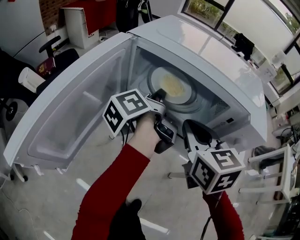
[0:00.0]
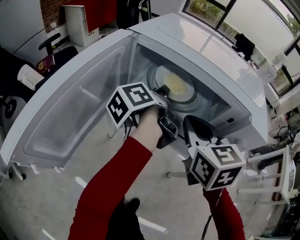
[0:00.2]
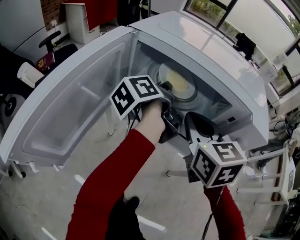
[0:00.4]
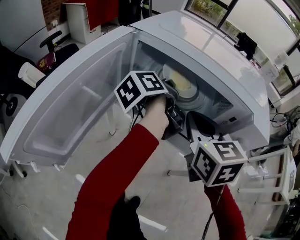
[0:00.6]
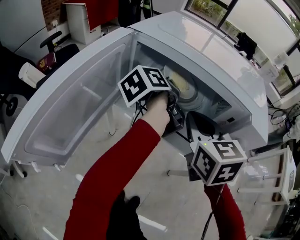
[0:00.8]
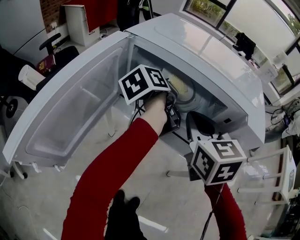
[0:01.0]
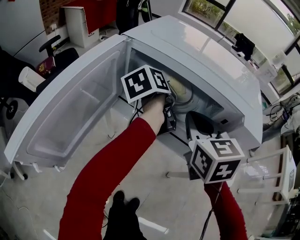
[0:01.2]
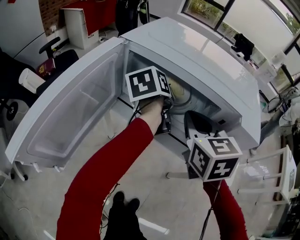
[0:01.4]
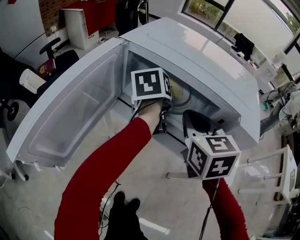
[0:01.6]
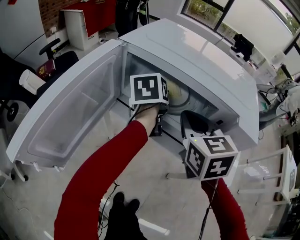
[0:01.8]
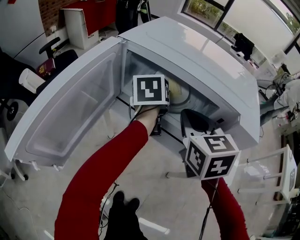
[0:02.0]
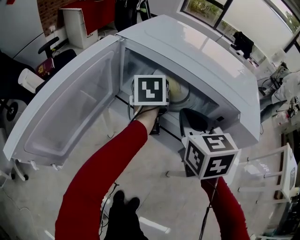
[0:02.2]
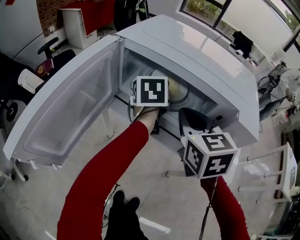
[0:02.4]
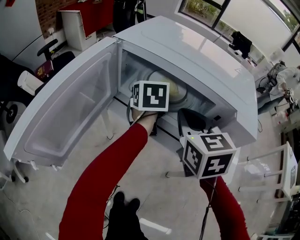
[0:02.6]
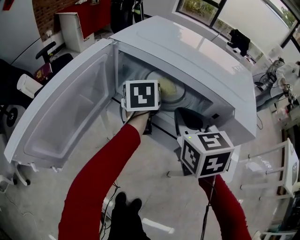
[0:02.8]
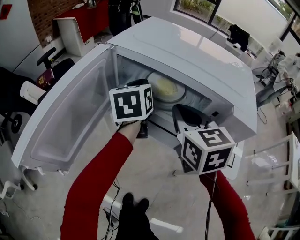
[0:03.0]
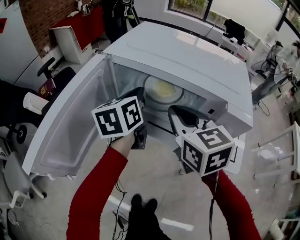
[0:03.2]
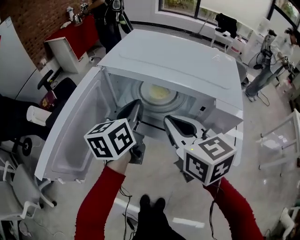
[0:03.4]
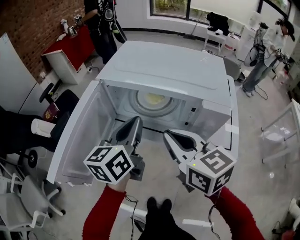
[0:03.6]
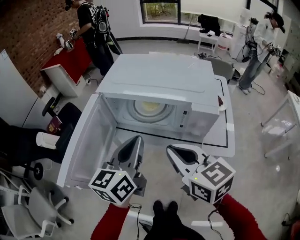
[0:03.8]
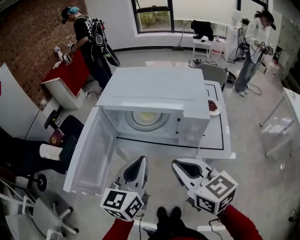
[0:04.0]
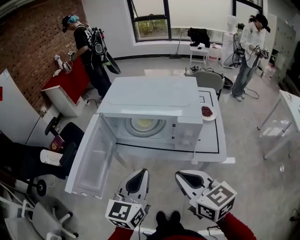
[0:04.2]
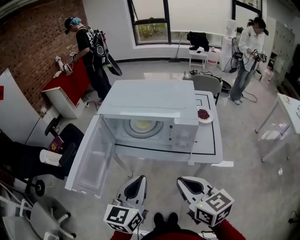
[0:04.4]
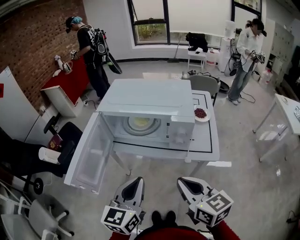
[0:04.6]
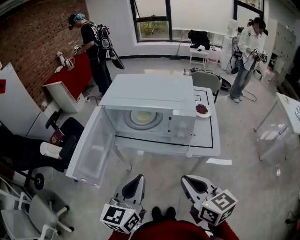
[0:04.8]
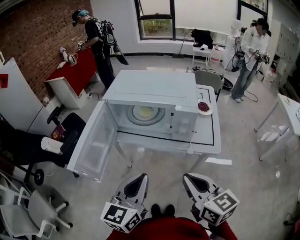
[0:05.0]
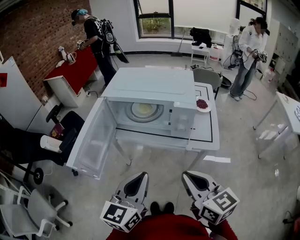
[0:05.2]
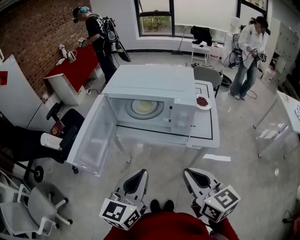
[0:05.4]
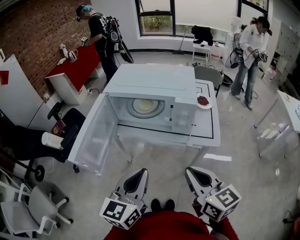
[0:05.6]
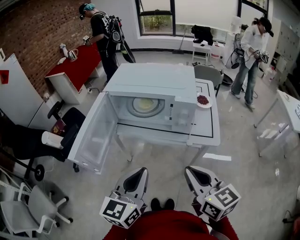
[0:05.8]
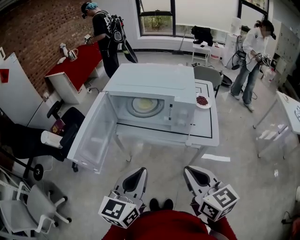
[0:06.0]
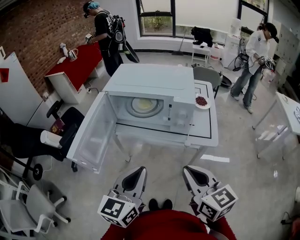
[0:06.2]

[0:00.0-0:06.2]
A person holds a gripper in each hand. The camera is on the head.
0:00.0 to 0:01.6: The left gripper rolls clockwise, seen from behind, by approximately 40 degrees.
0:01.6 to 0:03.2: The left gripper changes place by some 10 cm, and rotates roughly 20 degrees.
0:03.2 to 0:04.6: The grippers both shift backward by approximately 25 cm. The left gripper swivels about 30 degrees.
0:04.6 to 0:06.2: The left gripper is displaced backward by roughly 5 cm.

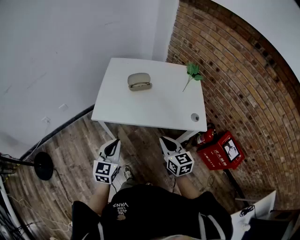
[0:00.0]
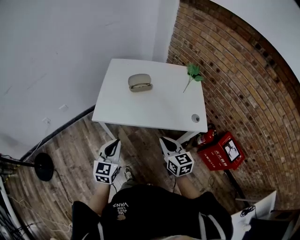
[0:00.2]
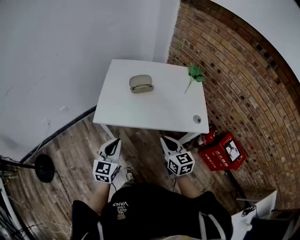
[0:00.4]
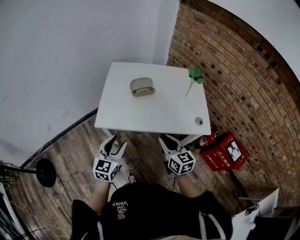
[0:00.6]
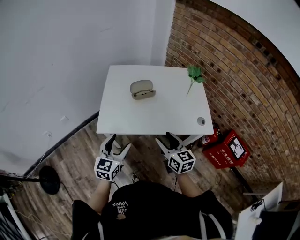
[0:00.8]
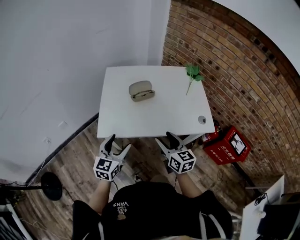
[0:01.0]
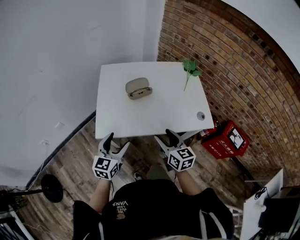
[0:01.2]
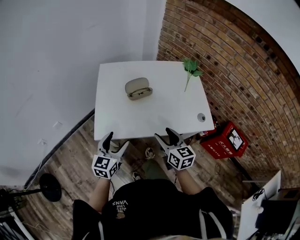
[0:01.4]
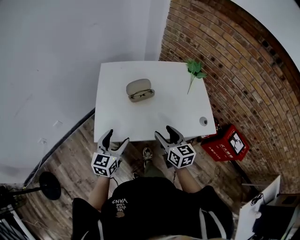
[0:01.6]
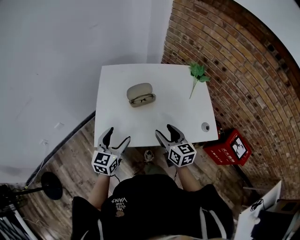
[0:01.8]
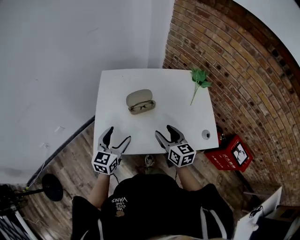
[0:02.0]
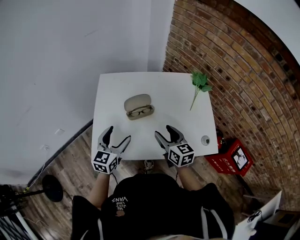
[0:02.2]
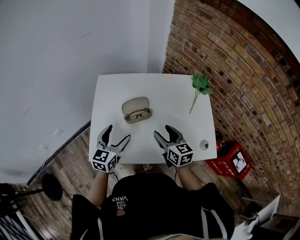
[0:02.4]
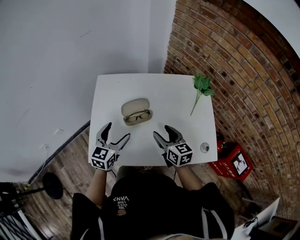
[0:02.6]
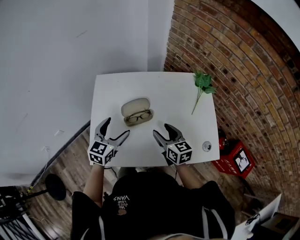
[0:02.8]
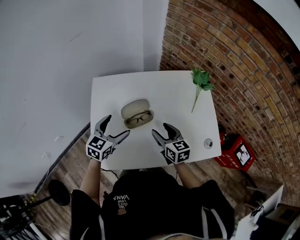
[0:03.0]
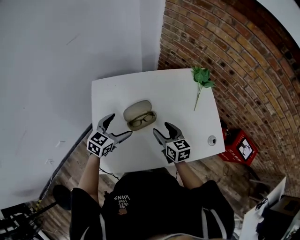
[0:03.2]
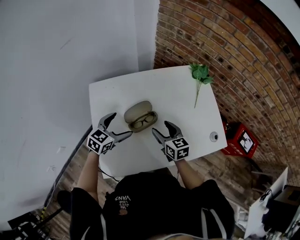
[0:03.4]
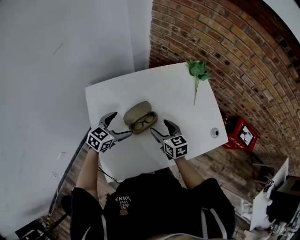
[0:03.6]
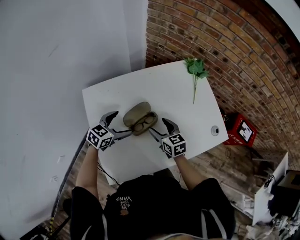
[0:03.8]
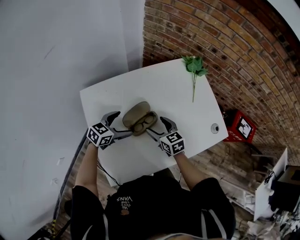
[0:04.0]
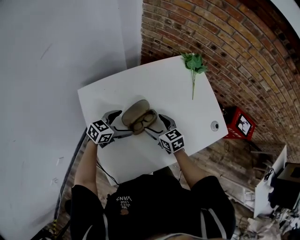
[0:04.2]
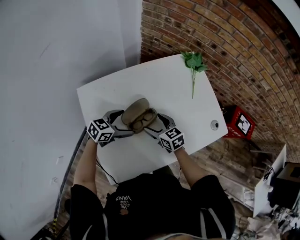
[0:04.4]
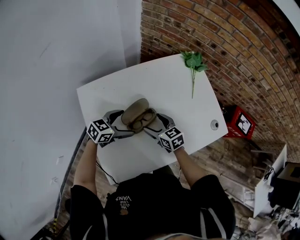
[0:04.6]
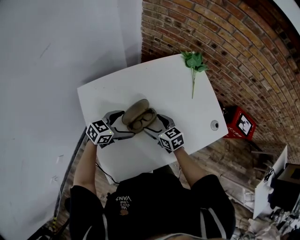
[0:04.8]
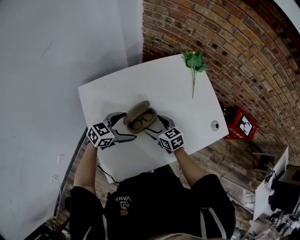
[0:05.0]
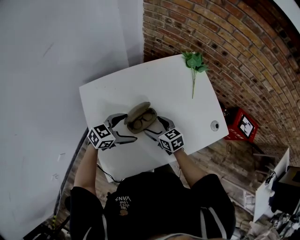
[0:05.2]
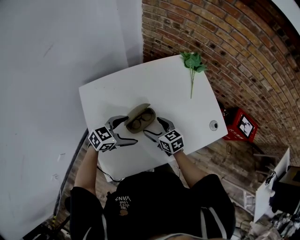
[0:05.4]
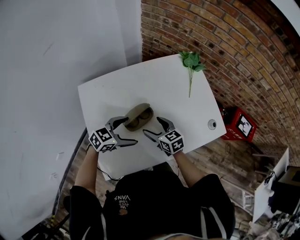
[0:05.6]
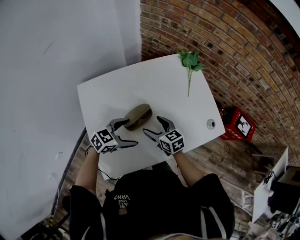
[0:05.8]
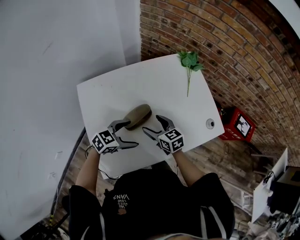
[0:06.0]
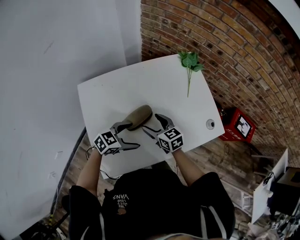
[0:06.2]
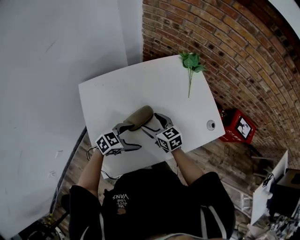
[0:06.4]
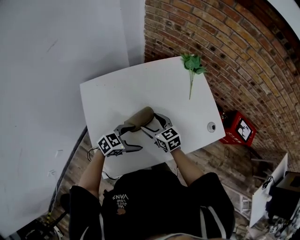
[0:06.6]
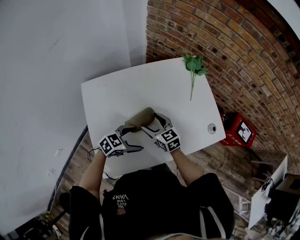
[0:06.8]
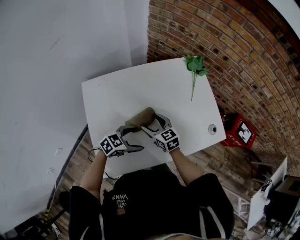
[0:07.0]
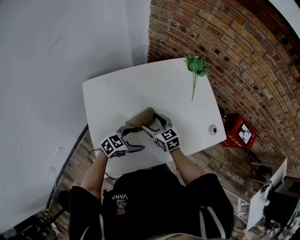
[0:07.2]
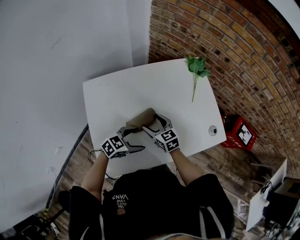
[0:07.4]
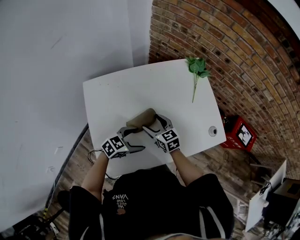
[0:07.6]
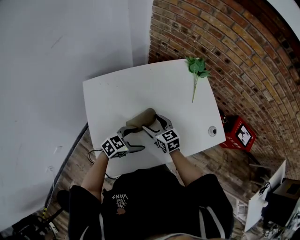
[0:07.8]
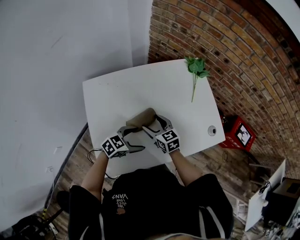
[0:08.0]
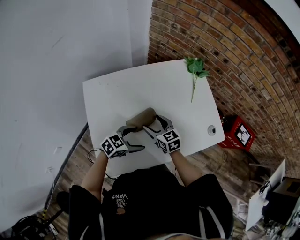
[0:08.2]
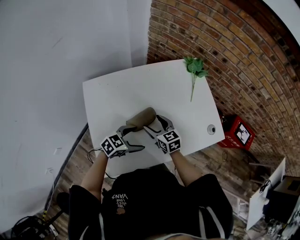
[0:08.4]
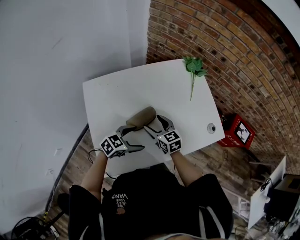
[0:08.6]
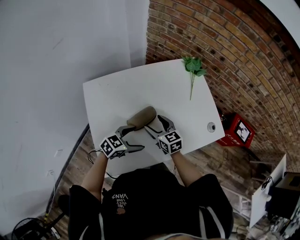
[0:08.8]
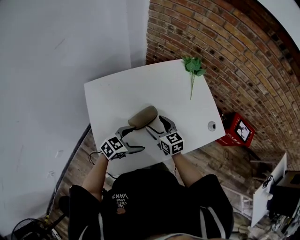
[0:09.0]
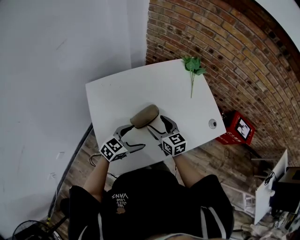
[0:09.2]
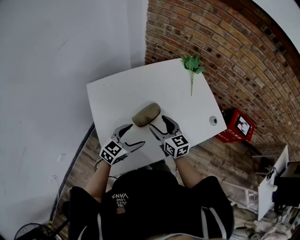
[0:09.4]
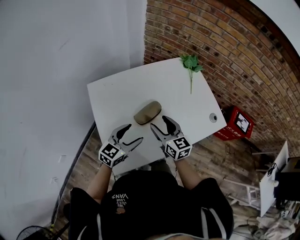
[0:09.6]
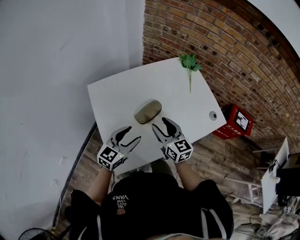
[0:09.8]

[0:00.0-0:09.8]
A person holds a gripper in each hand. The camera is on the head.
0:00.0 to 0:01.4: The left gripper is displaced forward by roughly 15 cm, and opens up. Meanwhile the right gripper goes roughly 10 cm forward and to the left, and opens up.
0:01.4 to 0:02.8: The grippers both shift forward by some 25 cm.
0:02.8 to 0:04.2: The right gripper moves about 10 cm, while the left gripper is displaced downward by about 10 cm, and rotates roughly 50 degrees.
0:04.2 to 0:05.6: The left gripper is displaced to the right and backward by approximately 10 cm.
0:05.6 to 0:07.0: The left gripper ends up about 5 cm from where it was.
0:07.0 to 0:08.4: The two grippers keep their place.
0:08.4 to 0:09.8: The right gripper moves upward and backward, approximately 15 cm, and rotates roughly 20 degrees. Meanwhile the left gripper moves upward, to the left and backward, about 15 cm, rotates some 30 degrees, and closes.

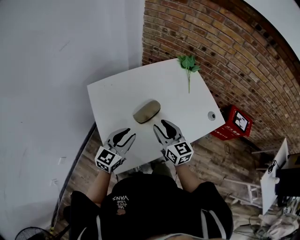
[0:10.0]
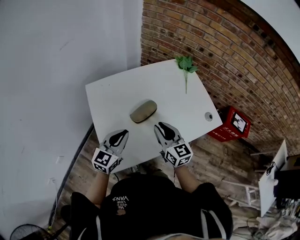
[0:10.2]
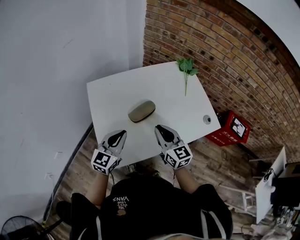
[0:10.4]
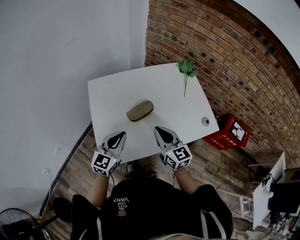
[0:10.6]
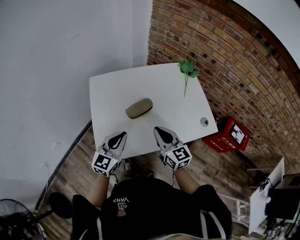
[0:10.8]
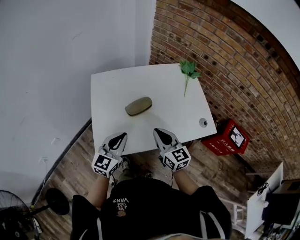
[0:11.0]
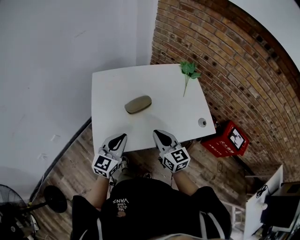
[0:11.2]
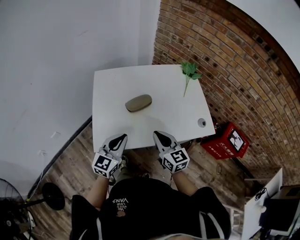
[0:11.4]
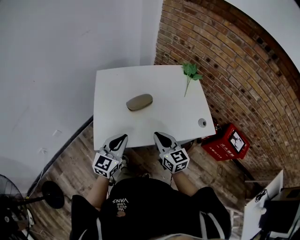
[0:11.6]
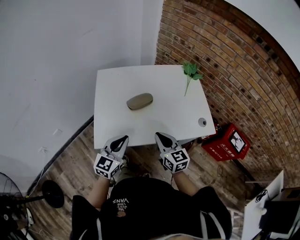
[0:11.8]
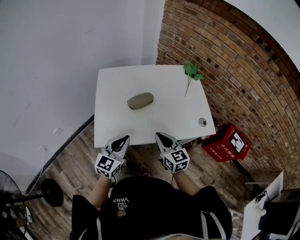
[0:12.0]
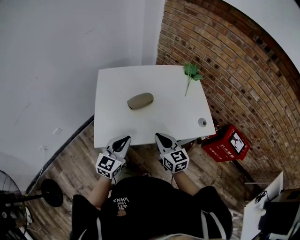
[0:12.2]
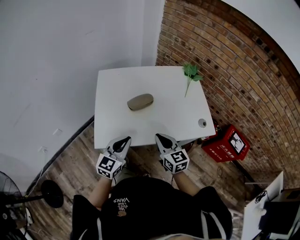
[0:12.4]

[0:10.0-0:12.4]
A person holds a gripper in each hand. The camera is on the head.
0:10.0 to 0:11.2: Both grippers travel together backward and to the right, roughly 10 cm. The right gripper closes.
0:11.2 to 0:12.4: The left gripper ends up roughly 5 cm from where it was.

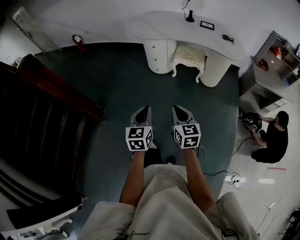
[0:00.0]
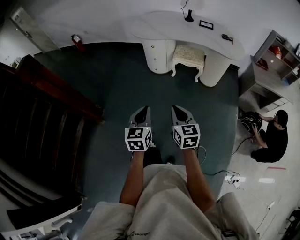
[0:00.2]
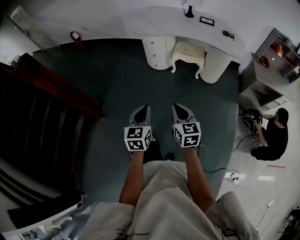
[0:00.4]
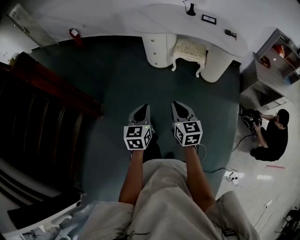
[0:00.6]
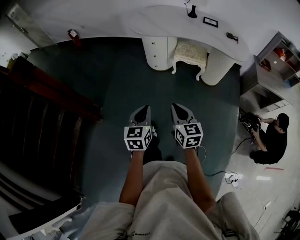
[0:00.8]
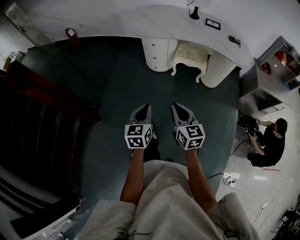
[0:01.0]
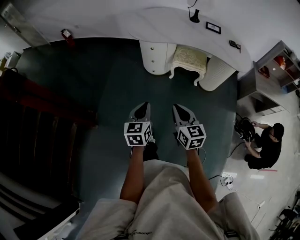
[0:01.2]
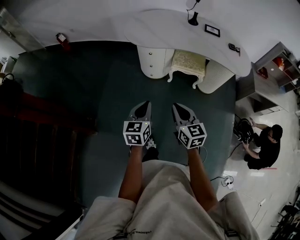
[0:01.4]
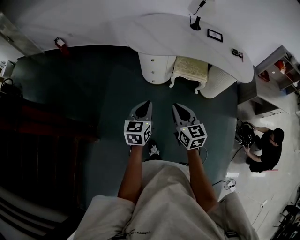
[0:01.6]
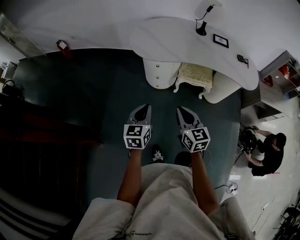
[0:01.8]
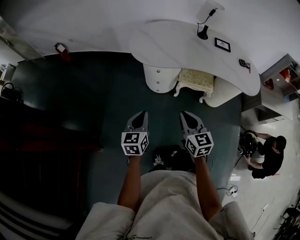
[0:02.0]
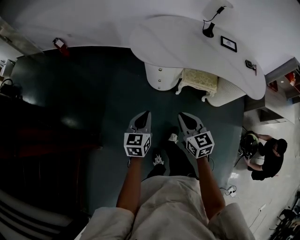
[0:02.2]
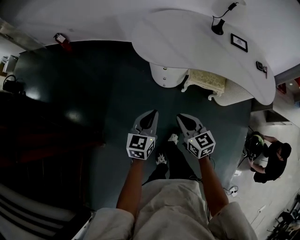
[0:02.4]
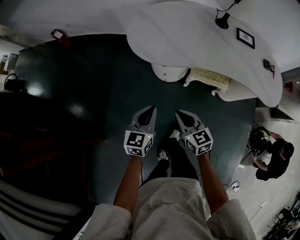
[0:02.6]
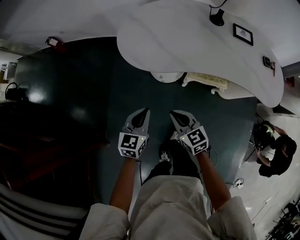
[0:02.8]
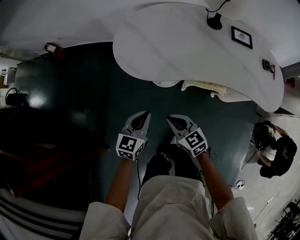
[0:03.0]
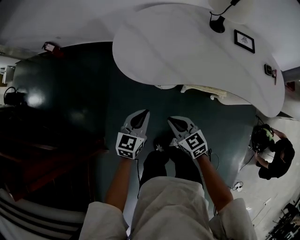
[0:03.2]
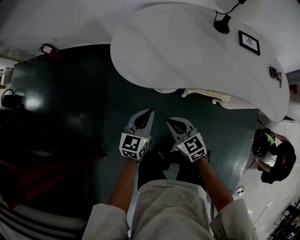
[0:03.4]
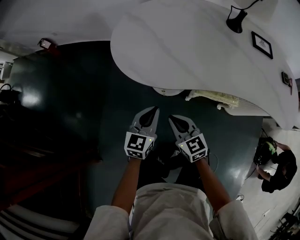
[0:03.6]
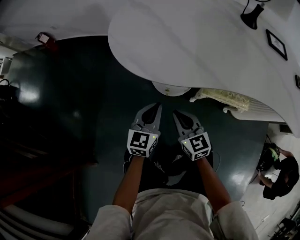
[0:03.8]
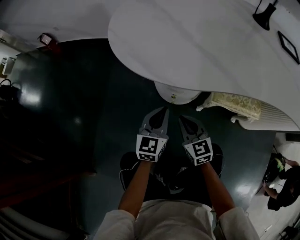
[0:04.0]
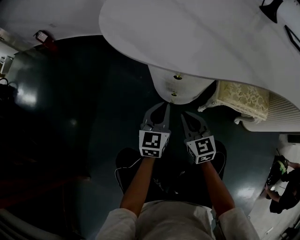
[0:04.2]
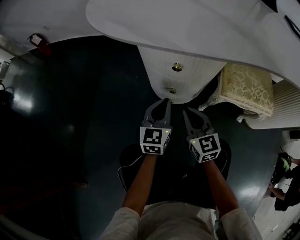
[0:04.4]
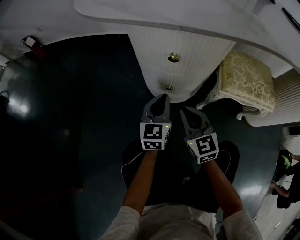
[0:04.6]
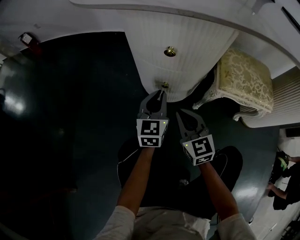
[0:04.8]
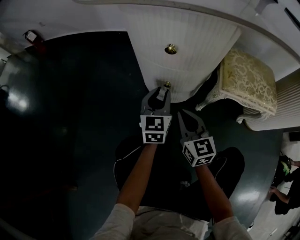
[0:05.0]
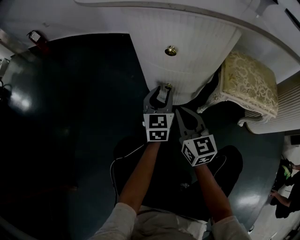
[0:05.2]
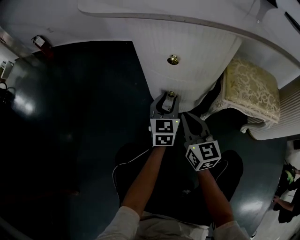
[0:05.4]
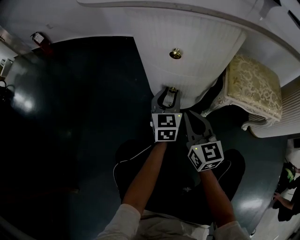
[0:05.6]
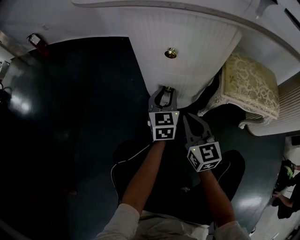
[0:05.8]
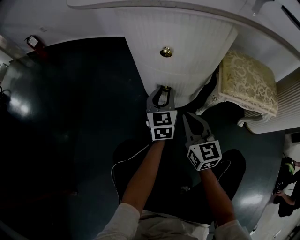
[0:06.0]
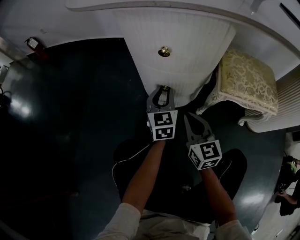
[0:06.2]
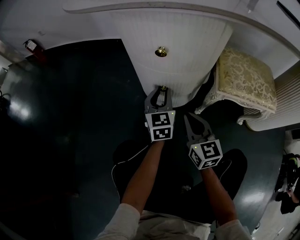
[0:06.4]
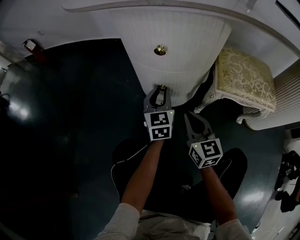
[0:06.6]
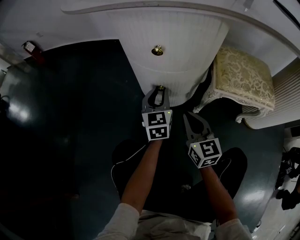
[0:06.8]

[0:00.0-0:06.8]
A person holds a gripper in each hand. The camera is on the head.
0:00.0 to 0:01.4: The grippers both shift forward by approximately 25 cm.
0:01.4 to 0:02.8: Both grippers move forward, approximately 30 cm.
0:02.8 to 0:04.0: Both grippers travel together downward and forward, roughly 35 cm.
0:04.0 to 0:05.4: The right gripper heads downward, covering roughly 15 cm. The left gripper goes roughly 20 cm downward and forward, and opens its fingers.
0:05.4 to 0:06.8: The right gripper moves roughly 5 cm.
